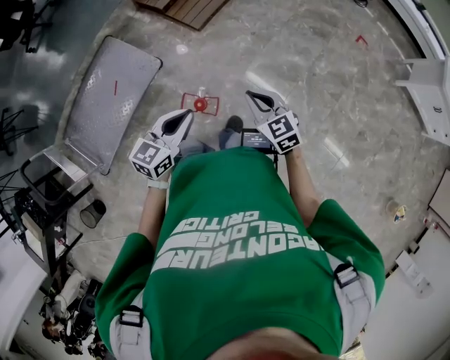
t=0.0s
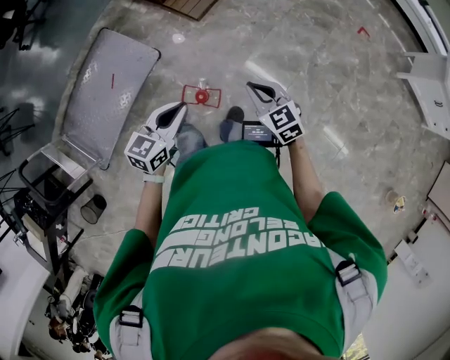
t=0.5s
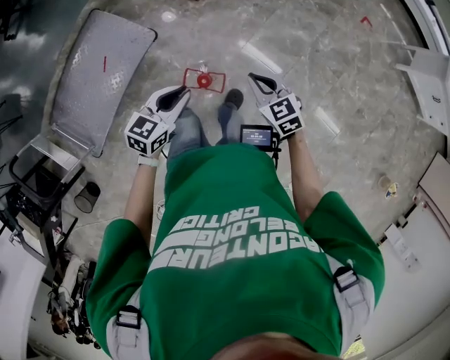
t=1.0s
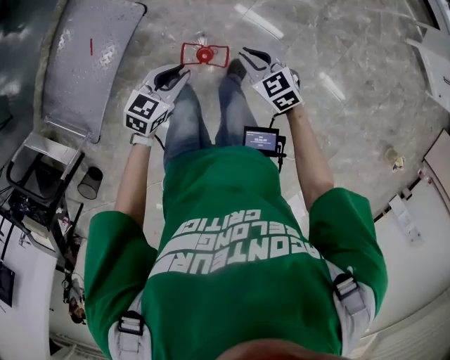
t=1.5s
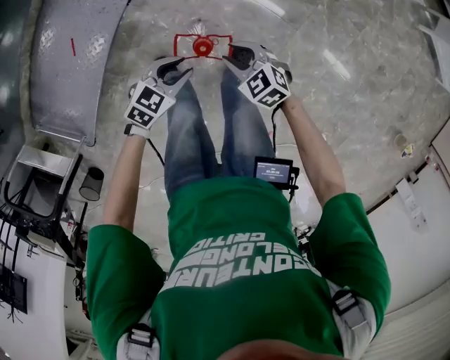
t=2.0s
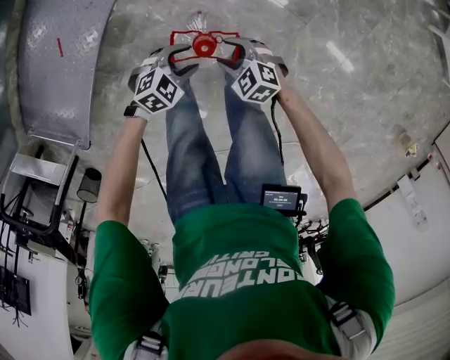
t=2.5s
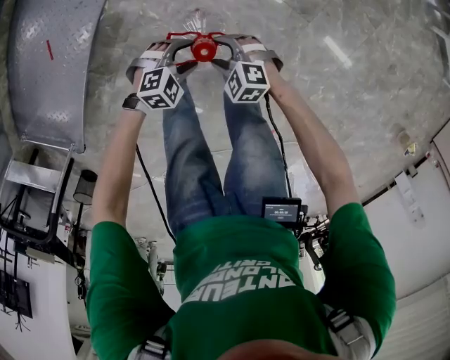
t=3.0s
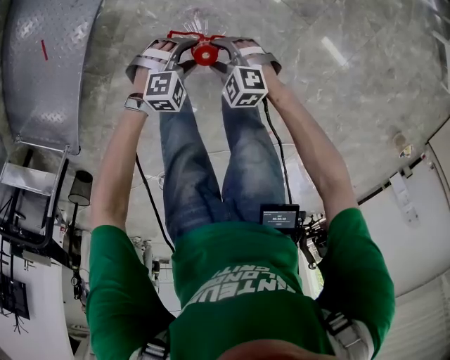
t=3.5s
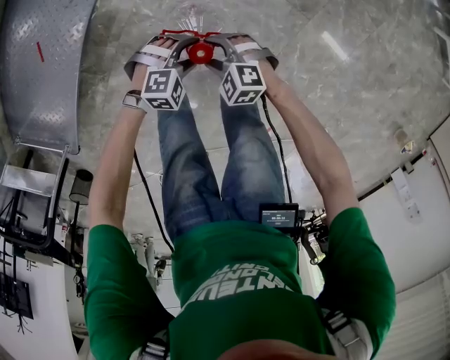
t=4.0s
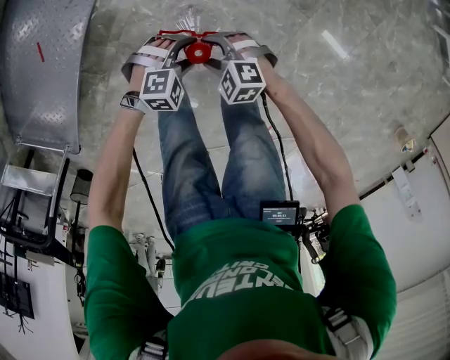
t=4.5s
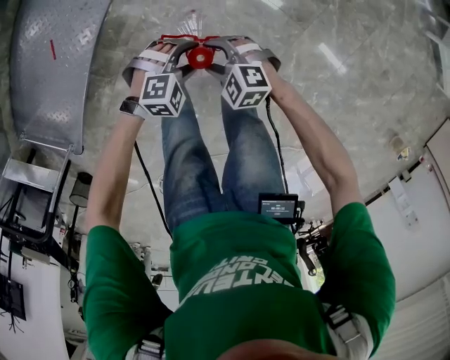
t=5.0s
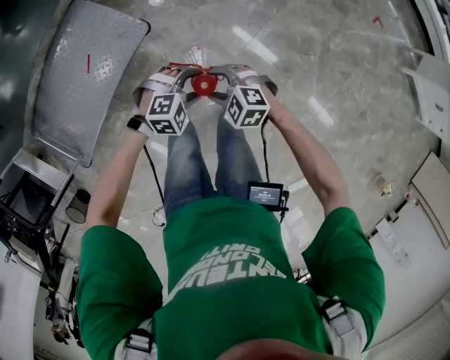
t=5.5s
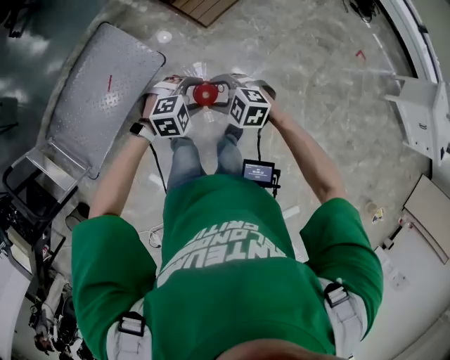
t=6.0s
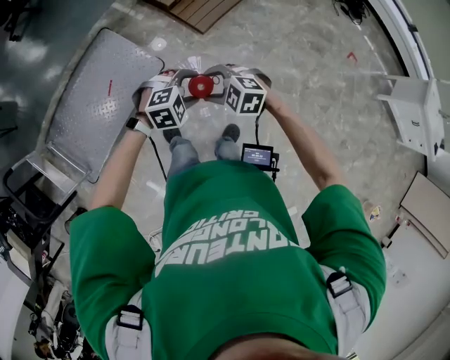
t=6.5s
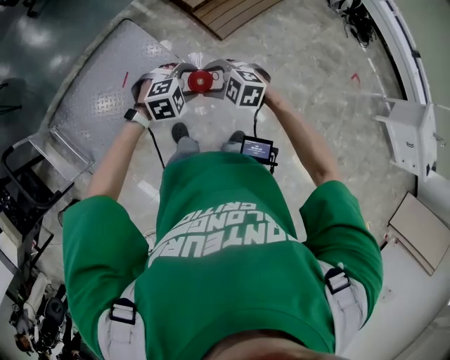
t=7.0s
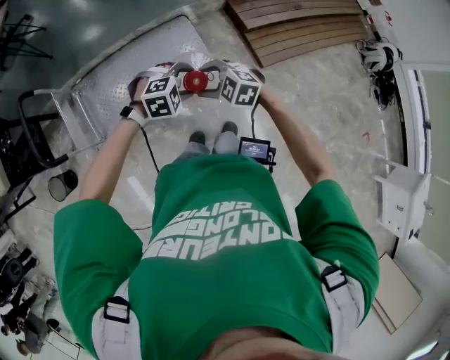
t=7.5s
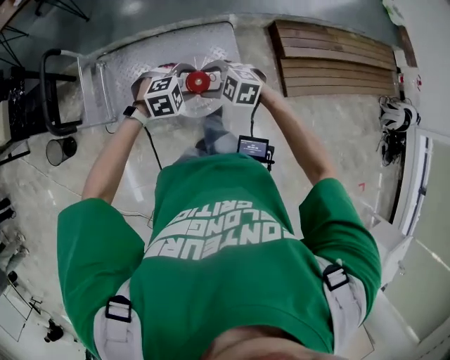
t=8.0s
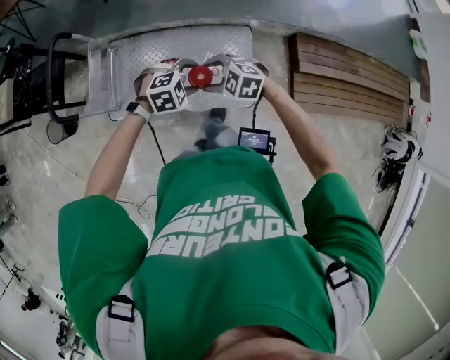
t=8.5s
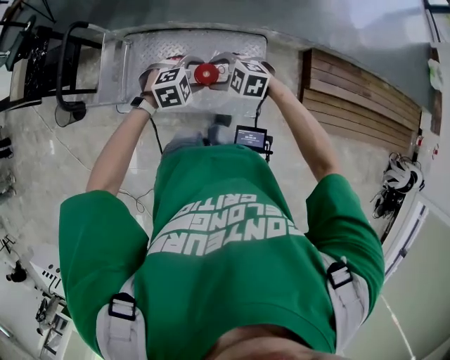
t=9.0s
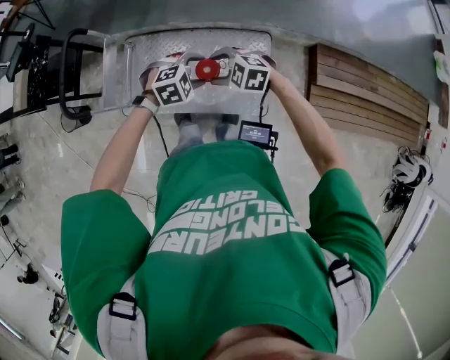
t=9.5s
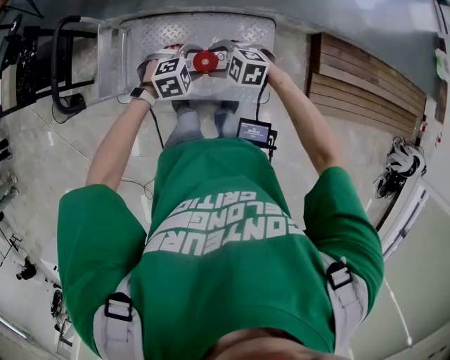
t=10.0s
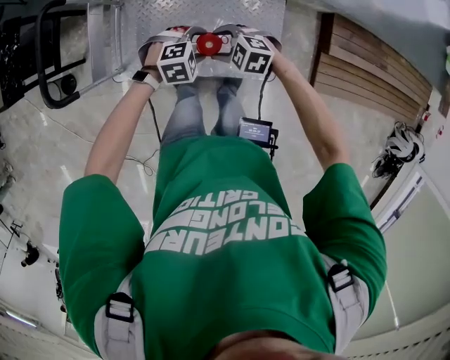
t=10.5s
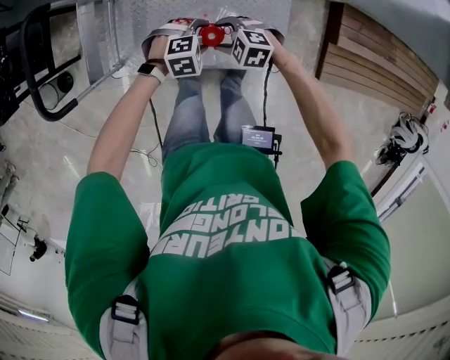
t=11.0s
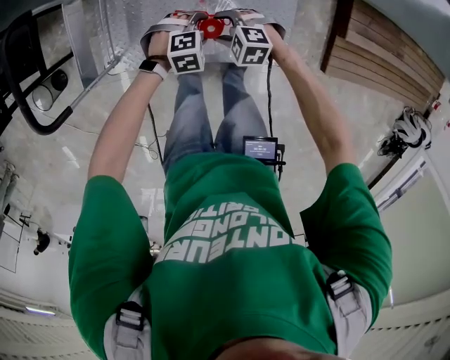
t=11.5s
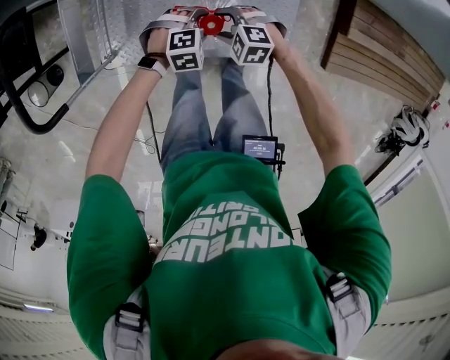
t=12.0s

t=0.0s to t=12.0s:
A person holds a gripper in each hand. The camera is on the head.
t=0.0s to t=2.0s: Both grippers travel together downward, roughly 35 cm. The left gripper swivels about 40 degrees, and opens up, while the right gripper swivels approximately 20 degrees, and opens its fingers.
t=2.0s to t=4.0s: Both grippers travel together downward, about 20 cm. The left gripper twists roughly 40 degrees clockwise, seen from behind, and opens up. Meanwhile the right gripper turns by roughly 20 degrees, and opens its fingers.
t=4.0s to t=6.0s: Both grippers travel together upward, about 40 cm.
t=6.0s to t=8.0s: The pair of grippers is taken some 50 cm. The left gripper changes its angle by some 40 degrees. The right gripper turns by approximately 40 degrees.
t=8.0s to t=10.0s: The right gripper shifts by roughly 20 cm. Meanwhile the left gripper shifts by approximately 20 cm.
t=10.0s to t=12.0s: The two grippers go approximately 20 cm downward.

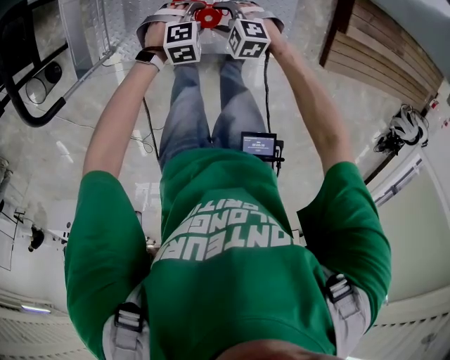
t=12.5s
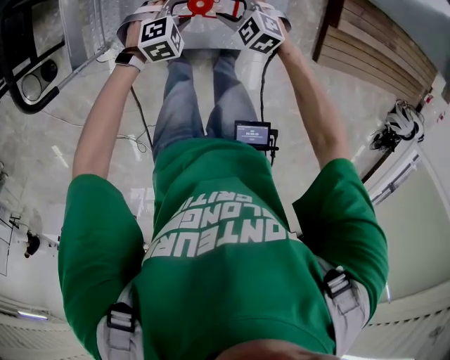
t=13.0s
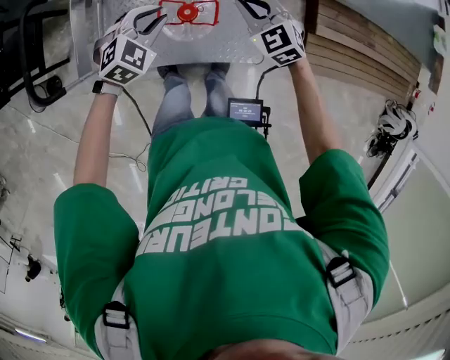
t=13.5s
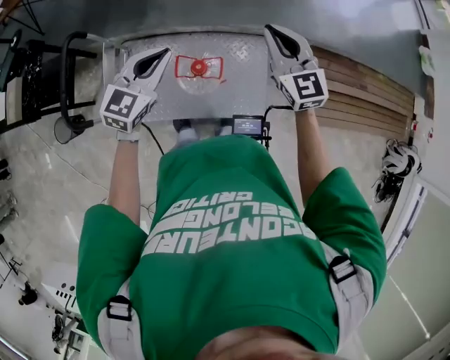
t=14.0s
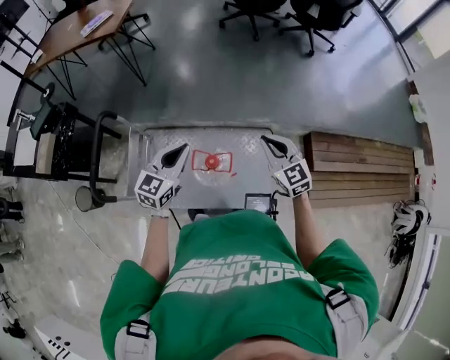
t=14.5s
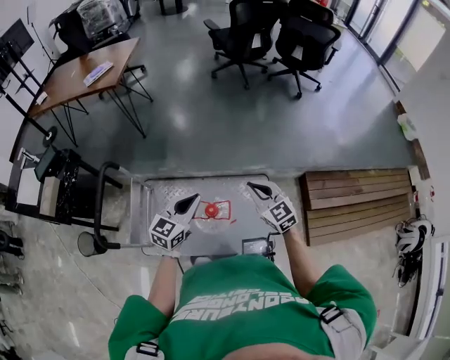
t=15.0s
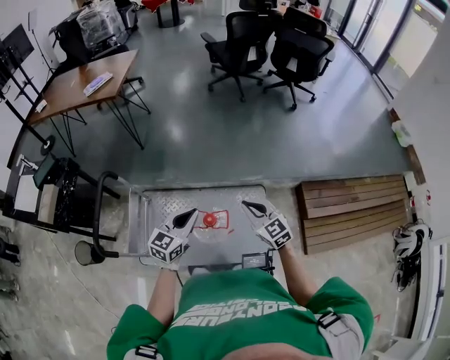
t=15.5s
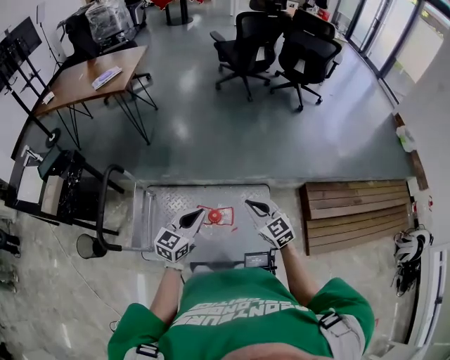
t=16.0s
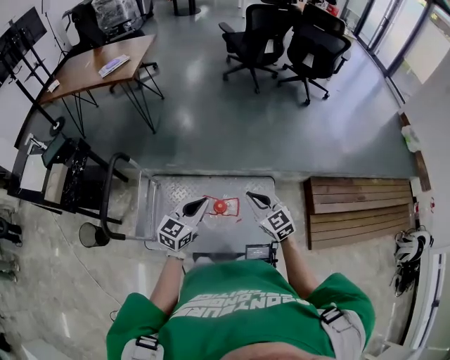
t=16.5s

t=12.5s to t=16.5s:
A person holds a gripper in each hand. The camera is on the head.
t=12.5s to t=14.5s: The two grippers go some 40 cm upward. The right gripper tips its fingers upward by some 40 degrees, and closes its fingers. Meanwhile the left gripper tips its fingers upward by some 60 degrees, and closes.
t=14.5s to t=16.5s: The right gripper goes some 5 cm to the left.

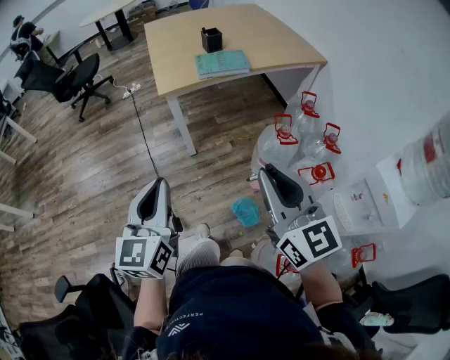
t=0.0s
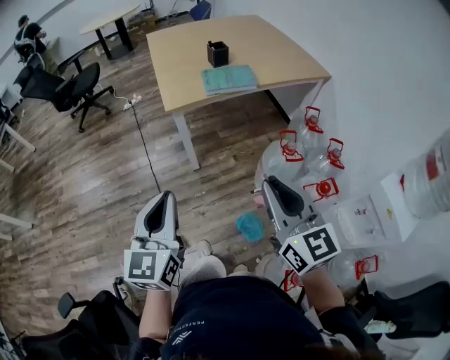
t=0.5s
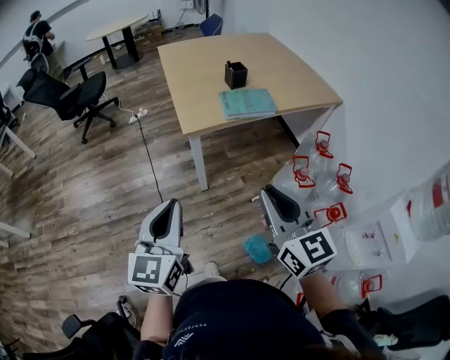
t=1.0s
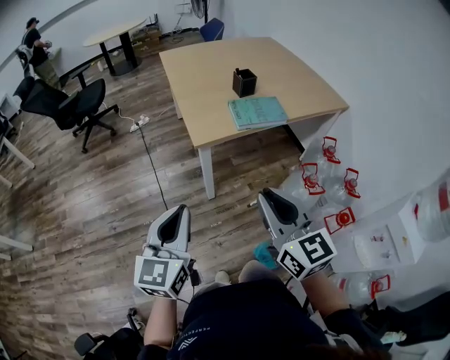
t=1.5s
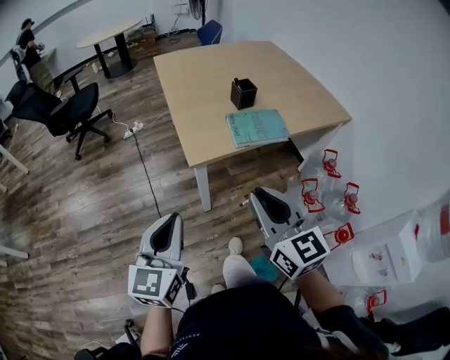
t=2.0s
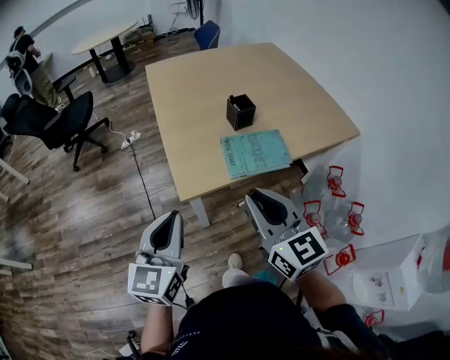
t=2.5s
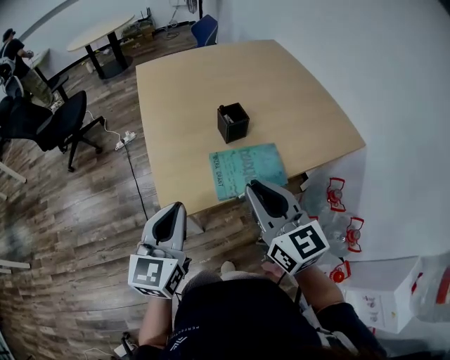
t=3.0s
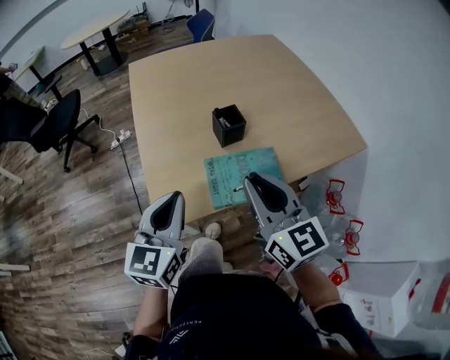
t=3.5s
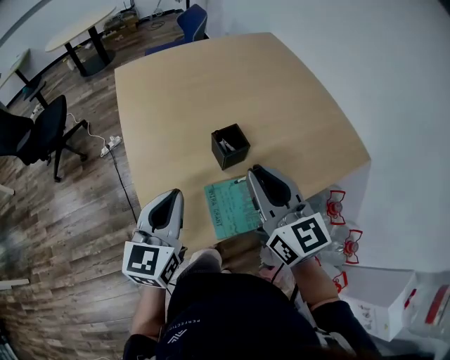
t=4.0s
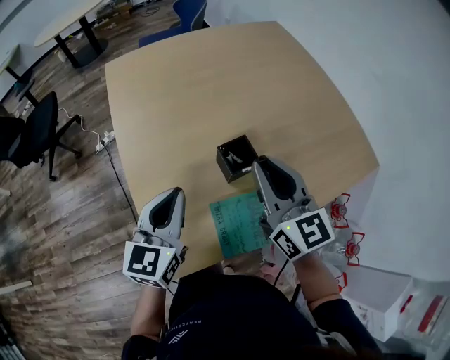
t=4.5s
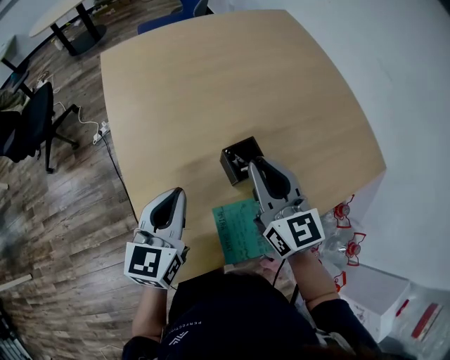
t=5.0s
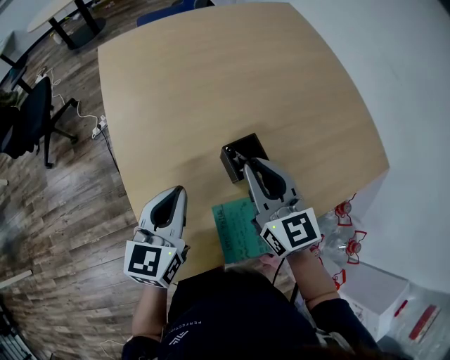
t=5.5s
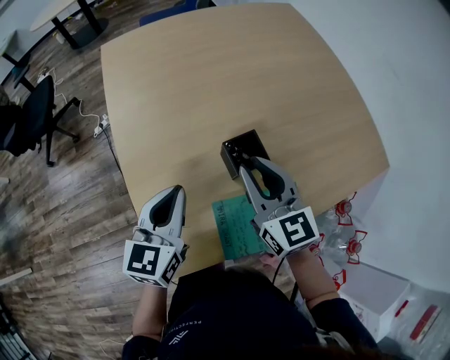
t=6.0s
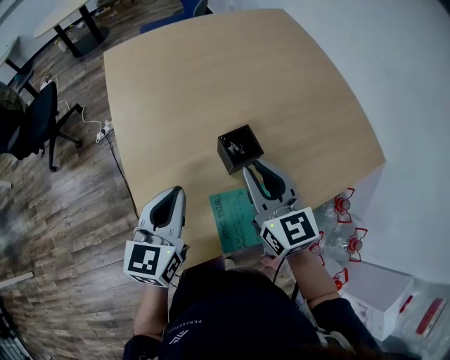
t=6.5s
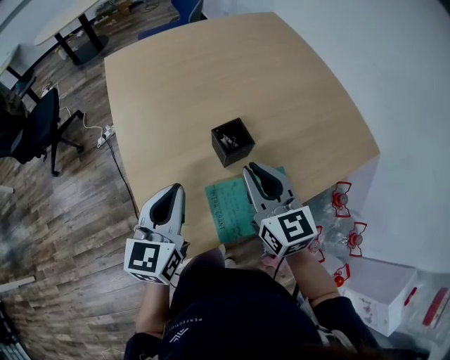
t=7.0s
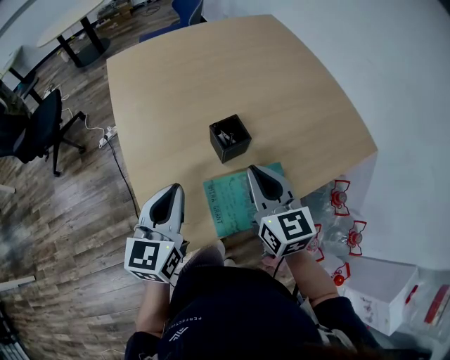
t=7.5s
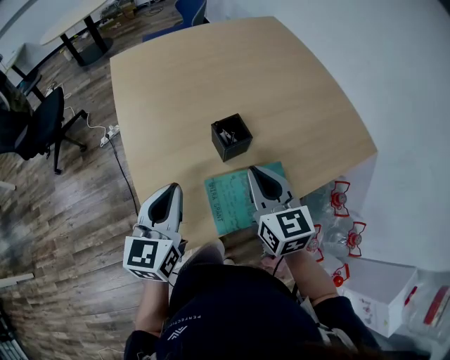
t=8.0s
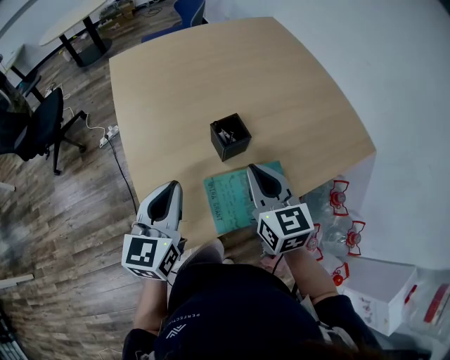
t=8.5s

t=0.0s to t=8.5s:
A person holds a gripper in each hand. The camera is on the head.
t=0.0s to t=2.0s: Both grippers travel together forward and to the left, some 30 cm.
t=2.0s to t=4.0s: The pair of grippers is taken forward, roughly 40 cm.
t=4.0s to t=6.5s: The right gripper travels downward and forward by approximately 10 cm; the left gripper moves forward, roughly 5 cm.
t=6.5s to t=8.5s: Both grippers travel together backward, some 5 cm.

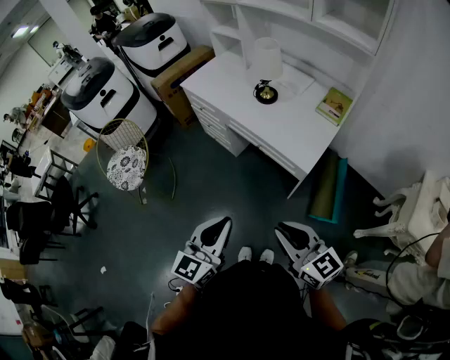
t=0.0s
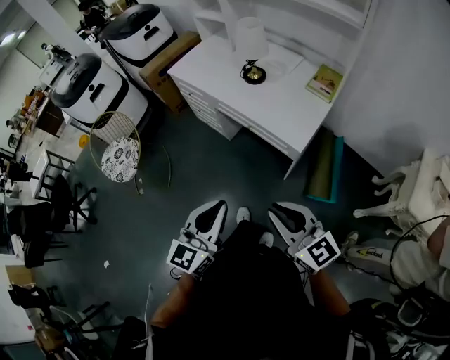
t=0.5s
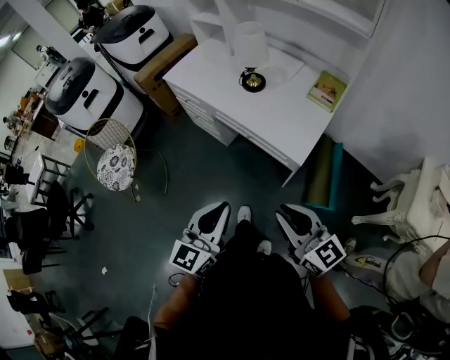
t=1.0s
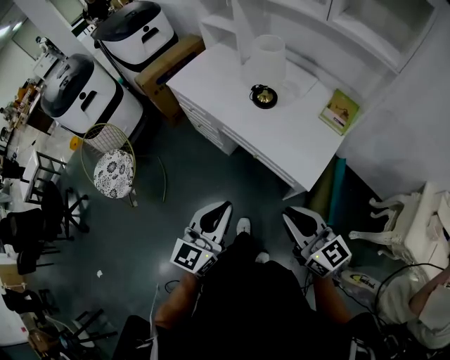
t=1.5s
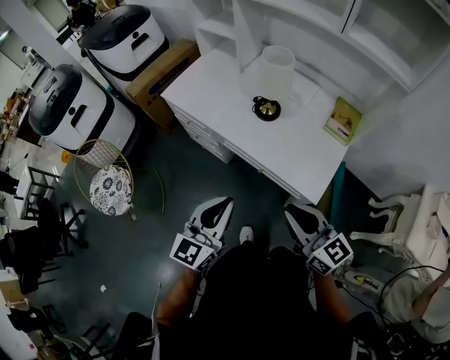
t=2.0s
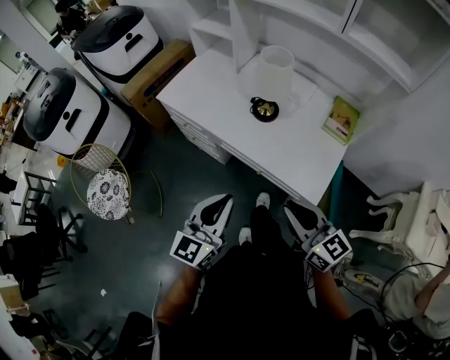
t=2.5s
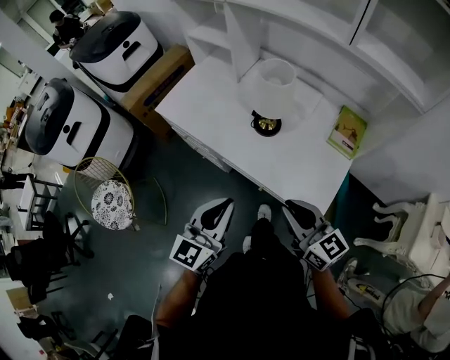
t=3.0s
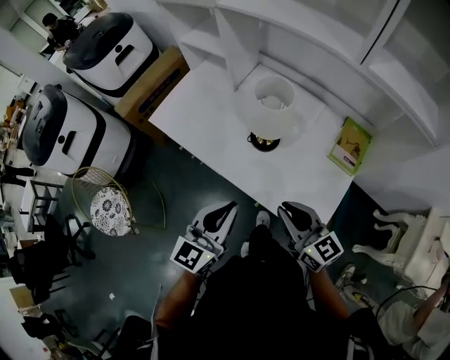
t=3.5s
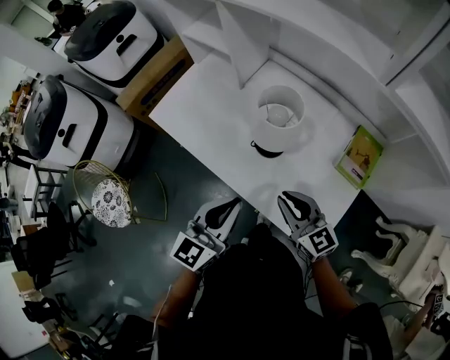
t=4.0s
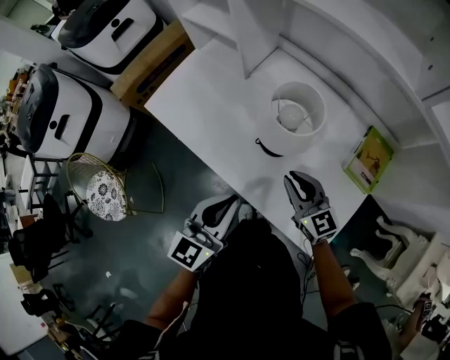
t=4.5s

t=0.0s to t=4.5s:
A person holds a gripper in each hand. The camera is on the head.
t=0.0s to t=2.0s: Both grippers move forward, some 25 cm.
t=2.0s to t=4.5s: The right gripper heads forward and downward, covering about 35 cm, while the left gripper is displaced forward by roughly 25 cm.
